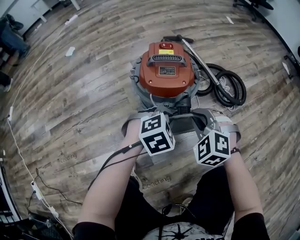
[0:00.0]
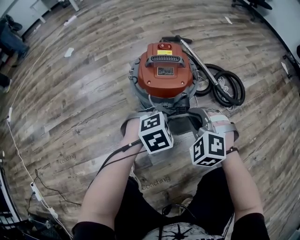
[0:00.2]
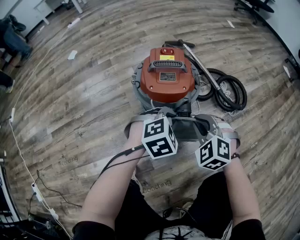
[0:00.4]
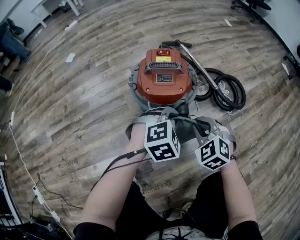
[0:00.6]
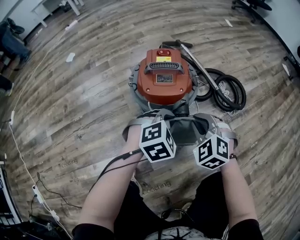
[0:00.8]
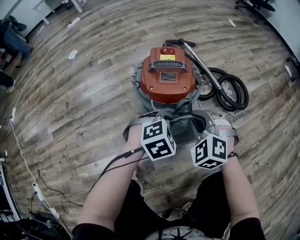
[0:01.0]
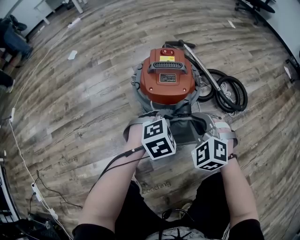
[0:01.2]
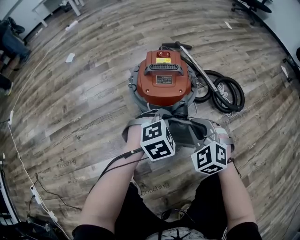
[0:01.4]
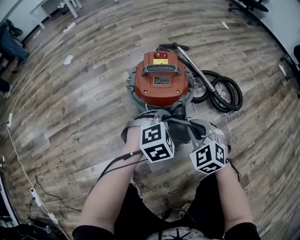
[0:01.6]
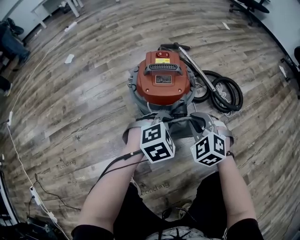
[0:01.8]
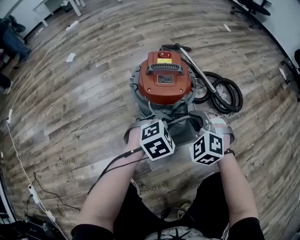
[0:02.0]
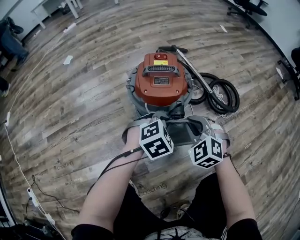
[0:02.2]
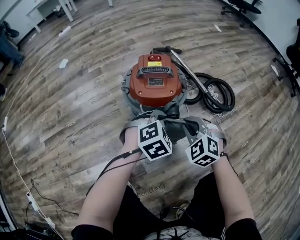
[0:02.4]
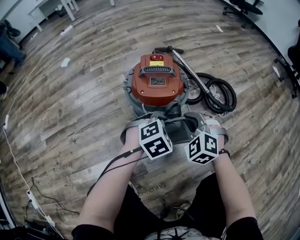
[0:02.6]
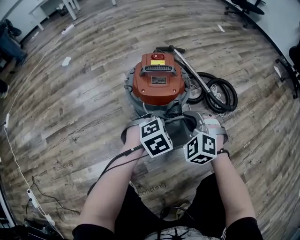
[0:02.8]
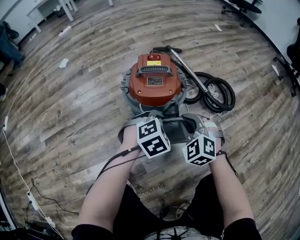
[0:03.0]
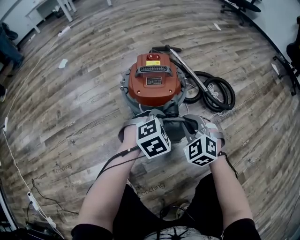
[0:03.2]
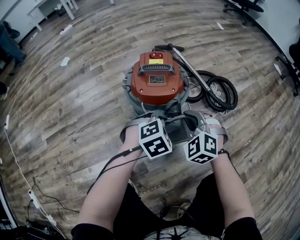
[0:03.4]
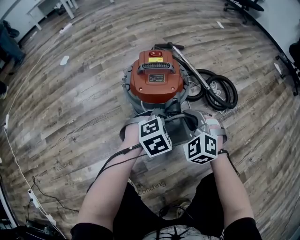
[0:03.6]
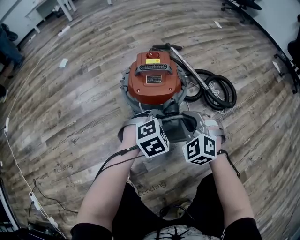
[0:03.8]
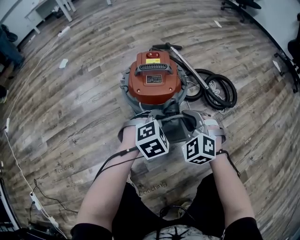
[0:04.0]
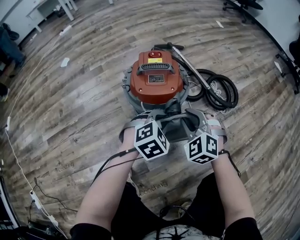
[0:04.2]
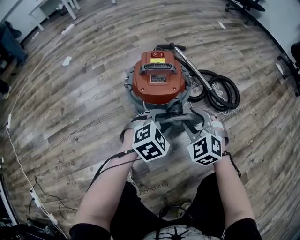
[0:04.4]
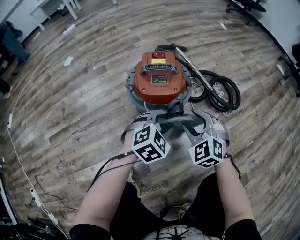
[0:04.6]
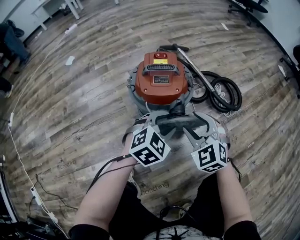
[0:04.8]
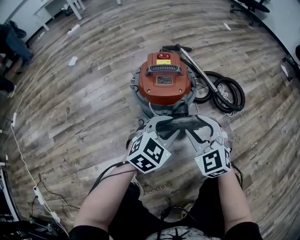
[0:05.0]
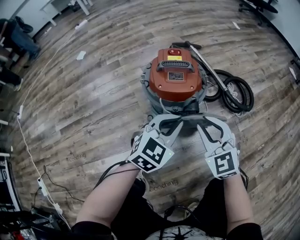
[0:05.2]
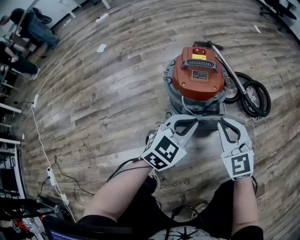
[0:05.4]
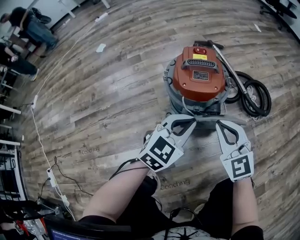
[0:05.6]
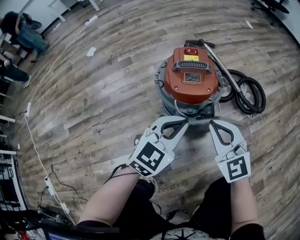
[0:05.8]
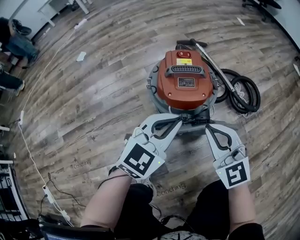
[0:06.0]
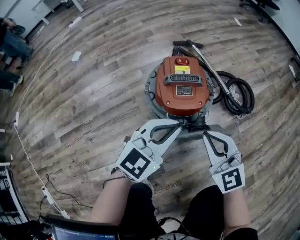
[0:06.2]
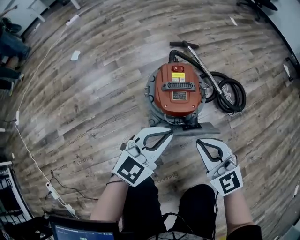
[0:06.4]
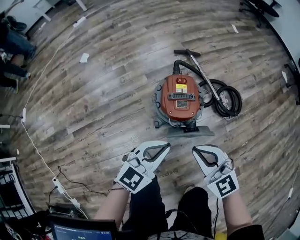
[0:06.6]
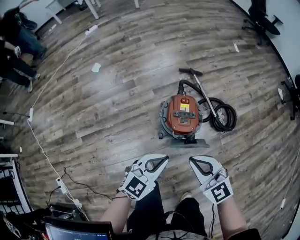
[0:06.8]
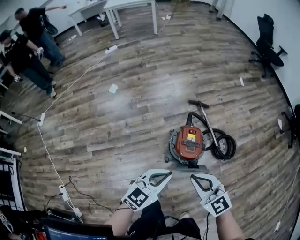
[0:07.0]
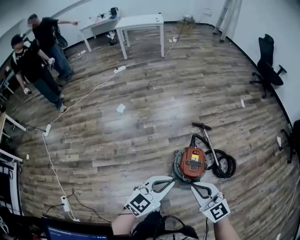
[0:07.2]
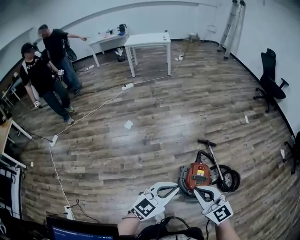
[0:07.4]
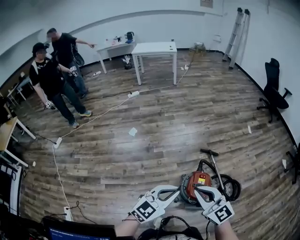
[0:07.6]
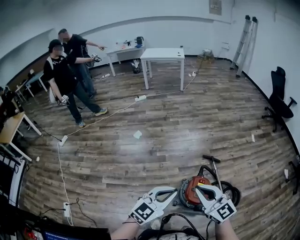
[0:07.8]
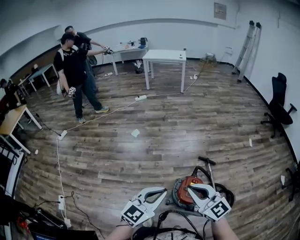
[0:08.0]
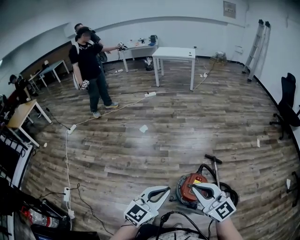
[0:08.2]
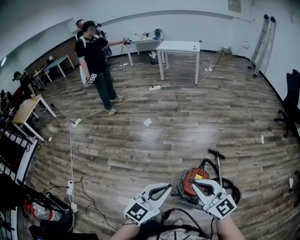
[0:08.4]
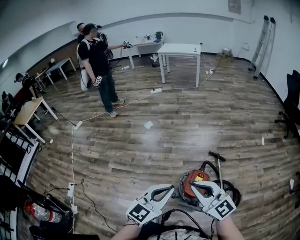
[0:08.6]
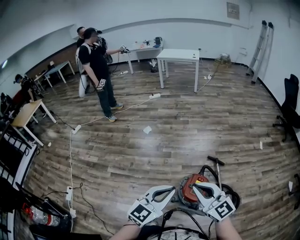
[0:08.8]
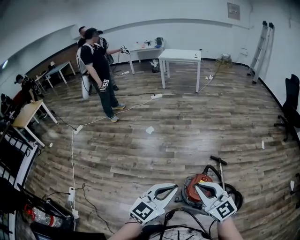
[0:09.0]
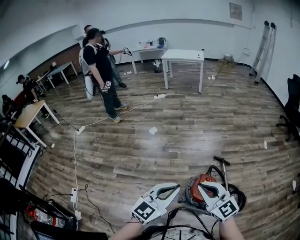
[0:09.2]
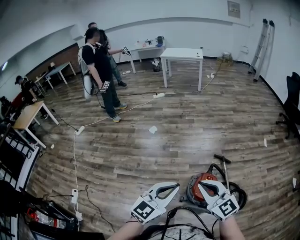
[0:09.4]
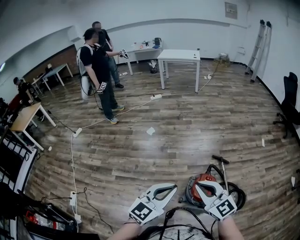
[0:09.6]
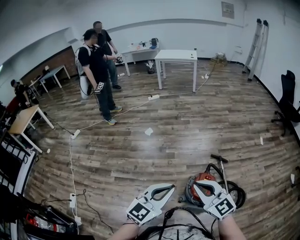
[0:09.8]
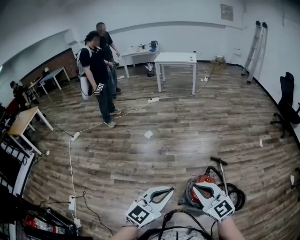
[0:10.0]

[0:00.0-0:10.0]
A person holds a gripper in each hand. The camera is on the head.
0:00.0 to 0:04.2: There are only small adjustments of the grippers.
0:04.2 to 0:05.8: The right gripper travels upward by some 5 cm, turns by some 30 degrees, and closes its fingers. Meanwhile the left gripper is displaced upward and to the left by some 10 cm, changes its angle by about 30 degrees, and opens and closes again.
0:05.8 to 0:07.2: The two grippers go approximately 50 cm upward. The right gripper rotates some 30 degrees.
0:07.2 to 0:08.6: Both grippers travel together upward and to the right, some 10 cm. The left gripper turns by some 30 degrees. The right gripper changes its angle by approximately 20 degrees.
0:08.6 to 0:10.0: Both grippers move to the left, about 10 cm.

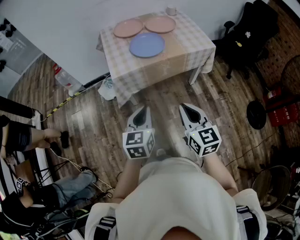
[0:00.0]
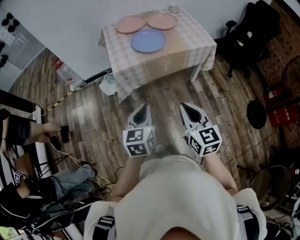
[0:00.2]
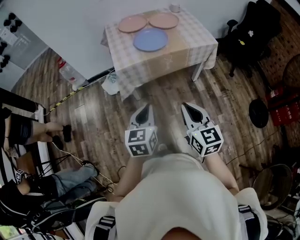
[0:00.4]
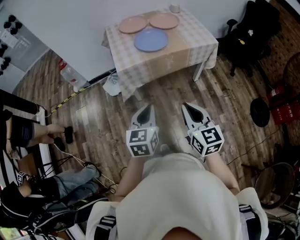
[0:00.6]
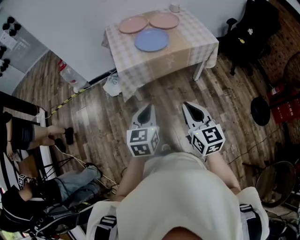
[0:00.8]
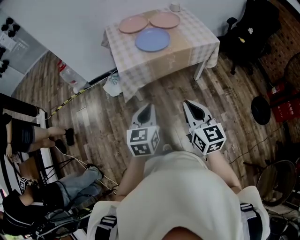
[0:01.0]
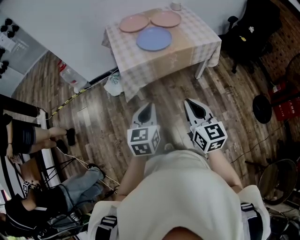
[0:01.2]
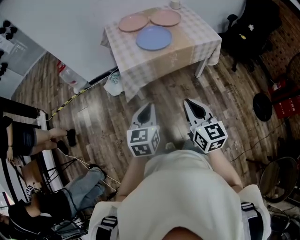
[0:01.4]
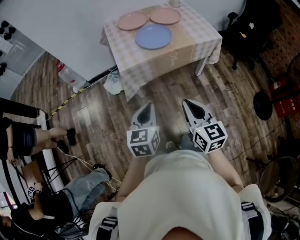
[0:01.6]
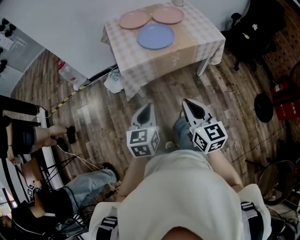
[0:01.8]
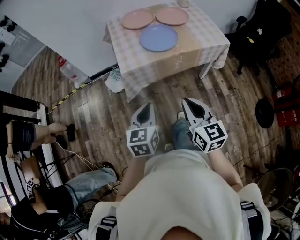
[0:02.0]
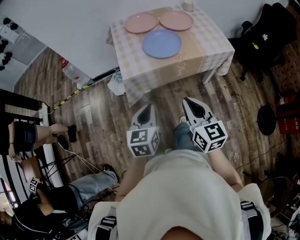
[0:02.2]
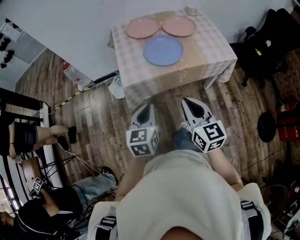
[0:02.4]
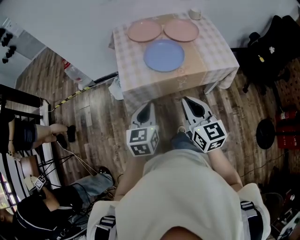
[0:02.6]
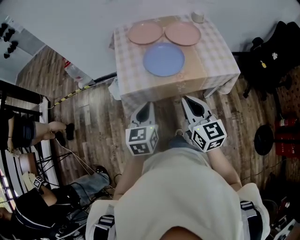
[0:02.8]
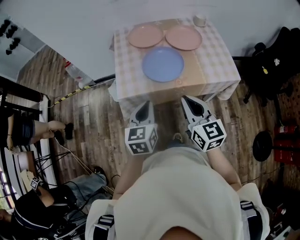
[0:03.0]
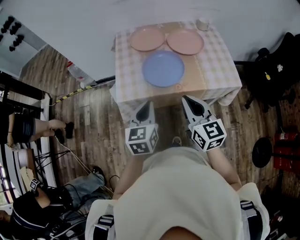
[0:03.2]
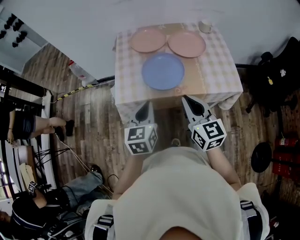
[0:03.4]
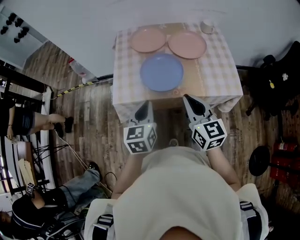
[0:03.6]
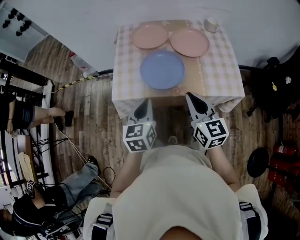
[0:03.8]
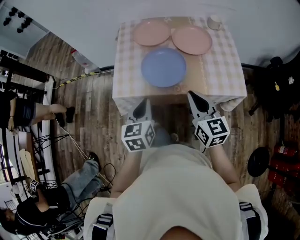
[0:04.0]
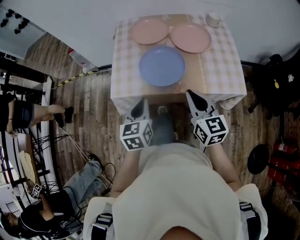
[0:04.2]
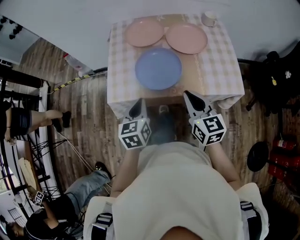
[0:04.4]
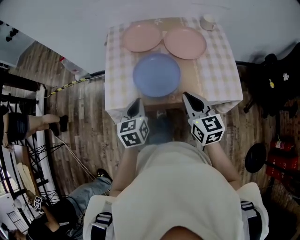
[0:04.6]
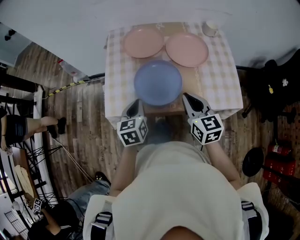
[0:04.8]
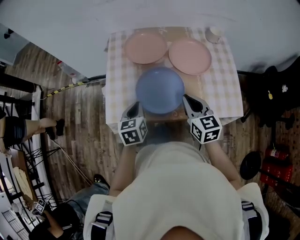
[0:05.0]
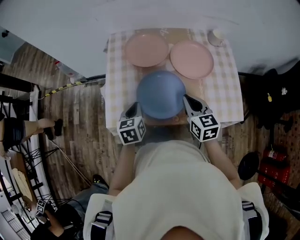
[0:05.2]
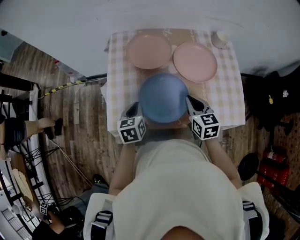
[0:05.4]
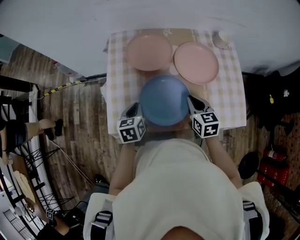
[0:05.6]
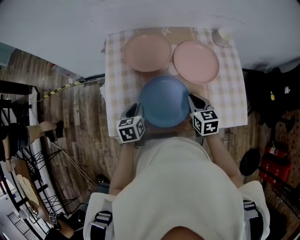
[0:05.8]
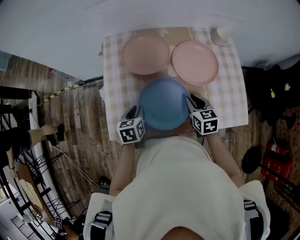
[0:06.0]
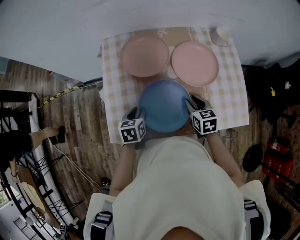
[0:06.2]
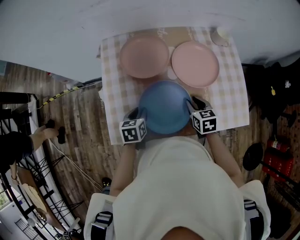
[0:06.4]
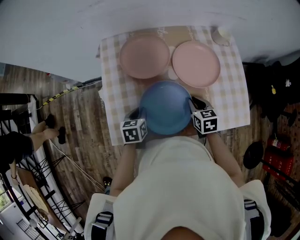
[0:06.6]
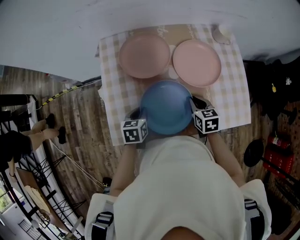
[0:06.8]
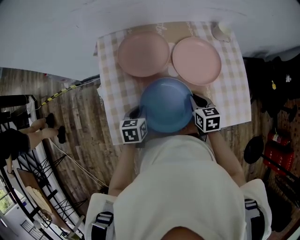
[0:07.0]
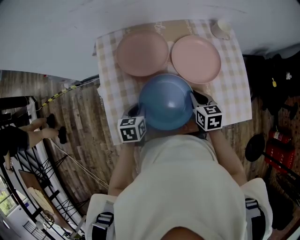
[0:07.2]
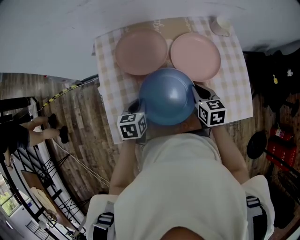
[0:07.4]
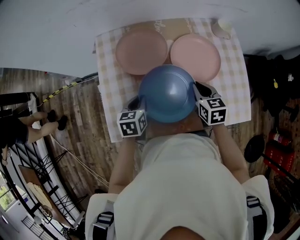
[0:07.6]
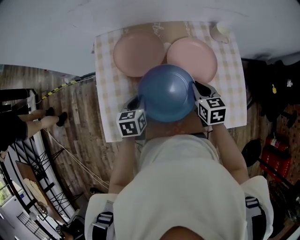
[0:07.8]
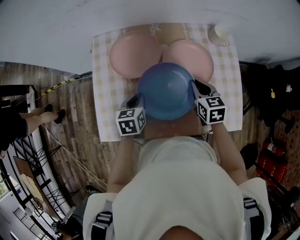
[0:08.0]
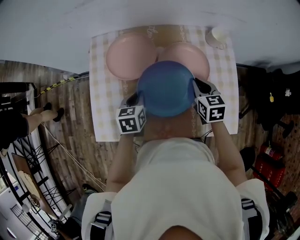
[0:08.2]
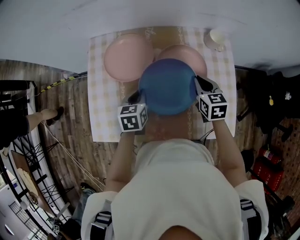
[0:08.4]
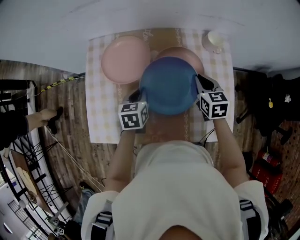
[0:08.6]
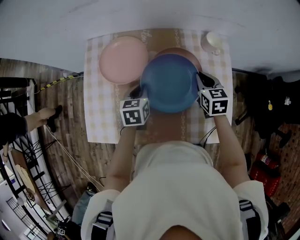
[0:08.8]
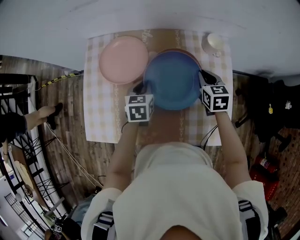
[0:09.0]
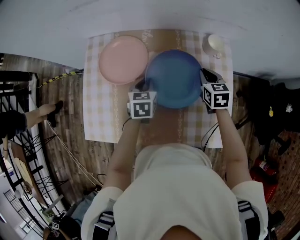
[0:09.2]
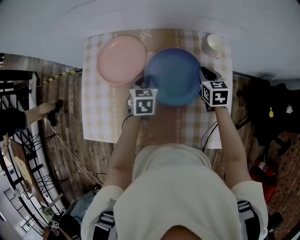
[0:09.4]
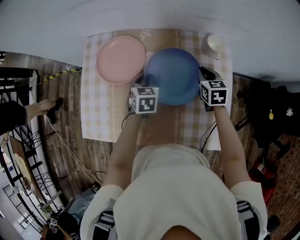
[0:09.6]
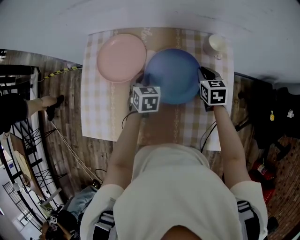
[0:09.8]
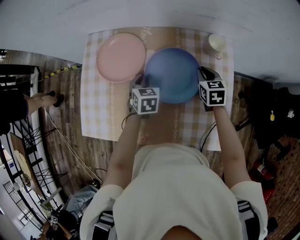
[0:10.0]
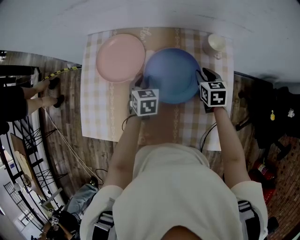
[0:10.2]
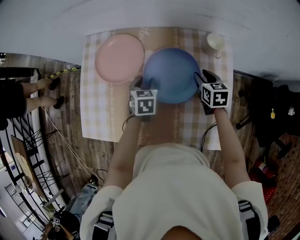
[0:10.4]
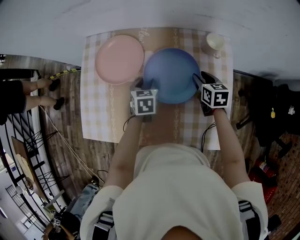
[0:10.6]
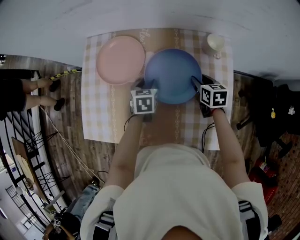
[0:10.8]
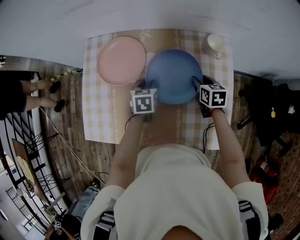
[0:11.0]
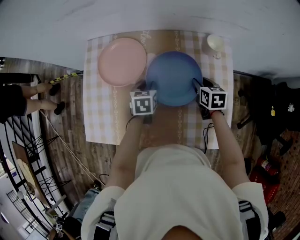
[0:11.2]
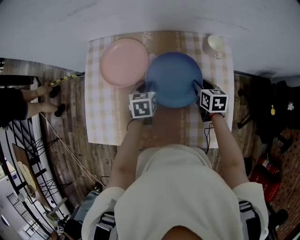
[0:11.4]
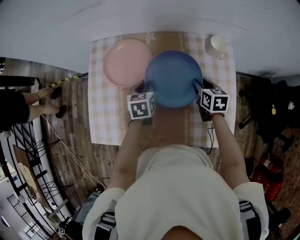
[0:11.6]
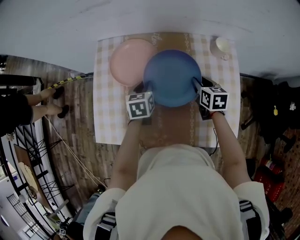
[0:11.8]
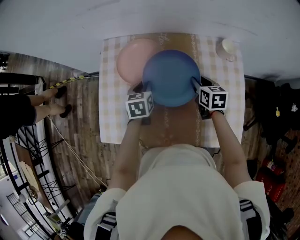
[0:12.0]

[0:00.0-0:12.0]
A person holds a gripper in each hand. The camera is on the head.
0:00.0 to 0:01.6: There are only small adjustments of the grippers.
0:01.6 to 0:03.0: Both grippers move forward, about 25 cm.
0:03.0 to 0:04.4: The right gripper moves forward and to the right, approximately 15 cm, while the left gripper moves forward and downward, roughly 10 cm.
0:04.4 to 0:06.0: Both grippers travel together forward and downward, about 25 cm. The left gripper opens. The right gripper rotates about 20 degrees.
0:06.0 to 0:07.6: The two grippers go some 5 cm forward.
0:07.6 to 0:09.0: The two grippers go approximately 20 cm to the right and forward.
0:09.0 to 0:10.4: The right gripper shifts by roughly 5 cm, and opens, while the left gripper changes place by approximately 5 cm, and opens its fingers.
0:10.4 to 0:12.0: The grippers both shift to the left by roughly 10 cm.

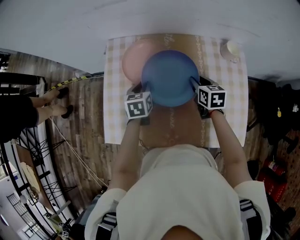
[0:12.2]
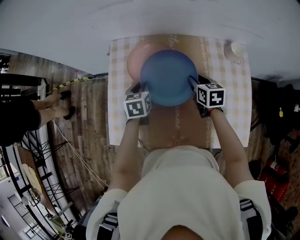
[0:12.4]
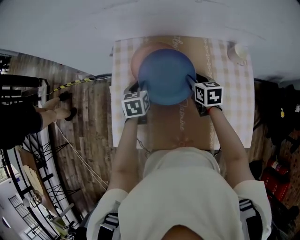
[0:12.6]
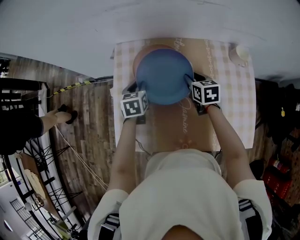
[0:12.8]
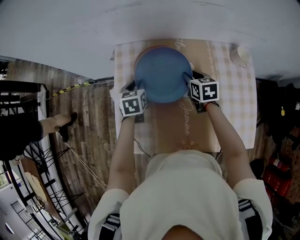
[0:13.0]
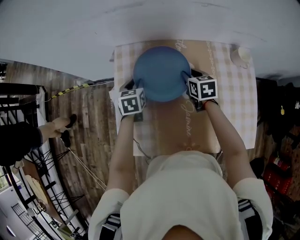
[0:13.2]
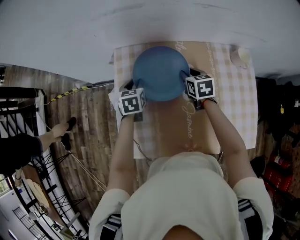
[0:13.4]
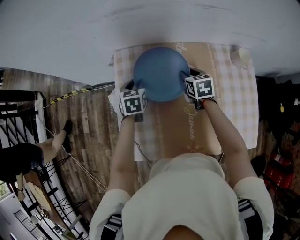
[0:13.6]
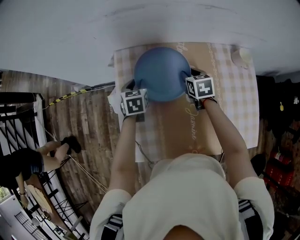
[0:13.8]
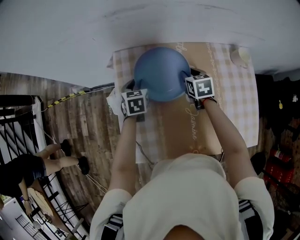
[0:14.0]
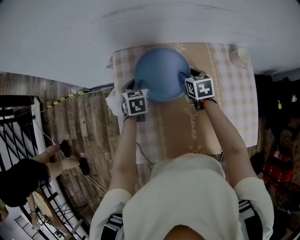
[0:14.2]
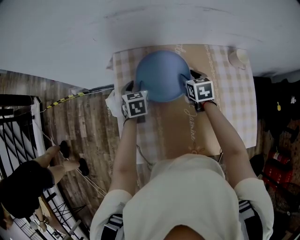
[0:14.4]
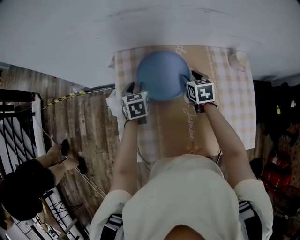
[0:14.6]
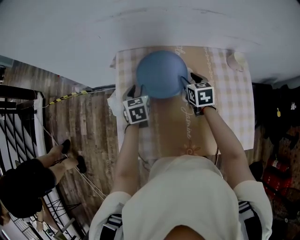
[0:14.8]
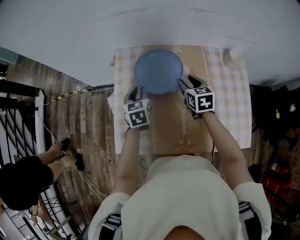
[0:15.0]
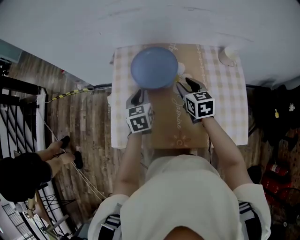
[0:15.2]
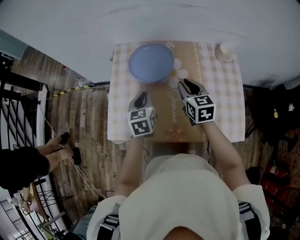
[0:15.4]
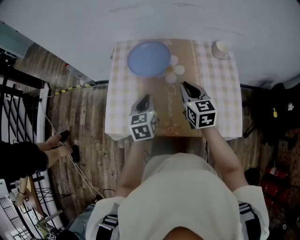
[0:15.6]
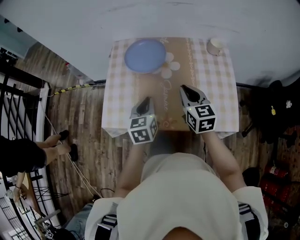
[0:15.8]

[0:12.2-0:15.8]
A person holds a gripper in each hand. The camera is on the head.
0:12.2 to 0:14.0: The grippers both shift forward and to the left by about 15 cm.
0:14.0 to 0:15.8: The left gripper shifts approximately 30 cm backward, rotates approximately 20 degrees, and closes its fingers. The right gripper moves backward and upward, about 30 cm, swivels roughly 30 degrees, and closes up.
